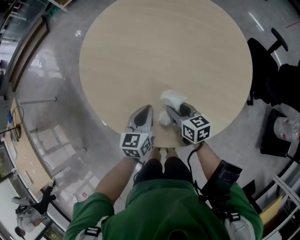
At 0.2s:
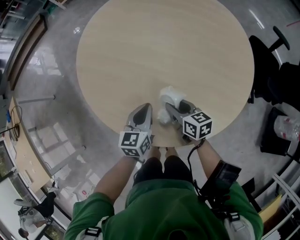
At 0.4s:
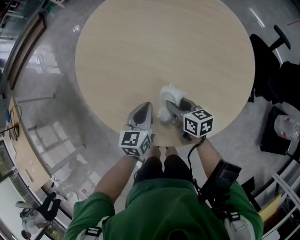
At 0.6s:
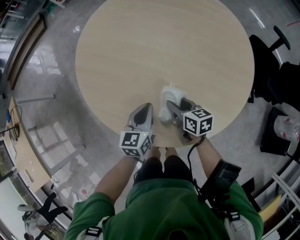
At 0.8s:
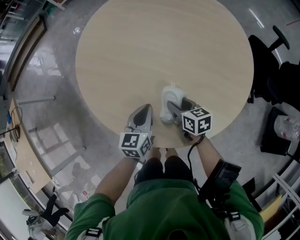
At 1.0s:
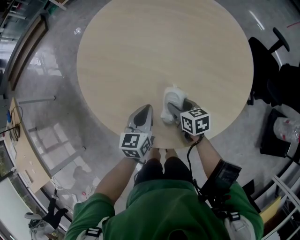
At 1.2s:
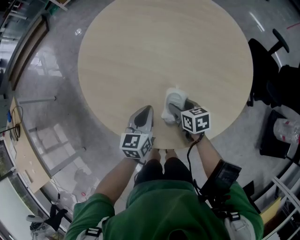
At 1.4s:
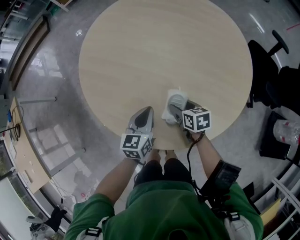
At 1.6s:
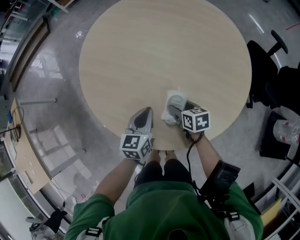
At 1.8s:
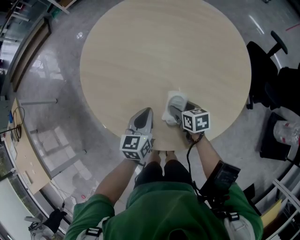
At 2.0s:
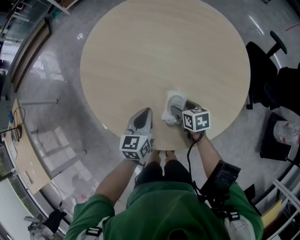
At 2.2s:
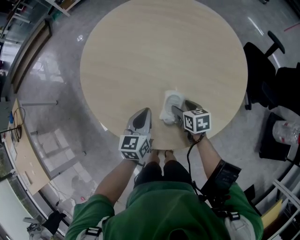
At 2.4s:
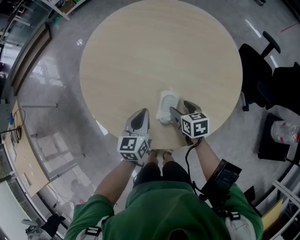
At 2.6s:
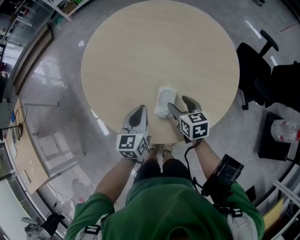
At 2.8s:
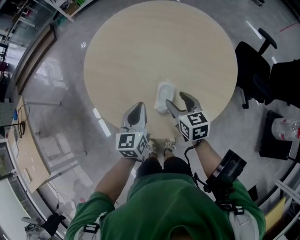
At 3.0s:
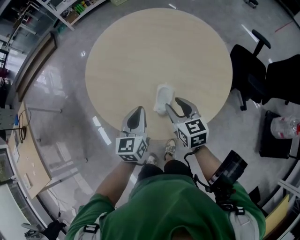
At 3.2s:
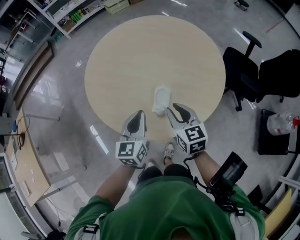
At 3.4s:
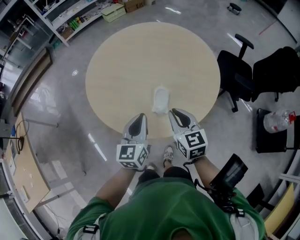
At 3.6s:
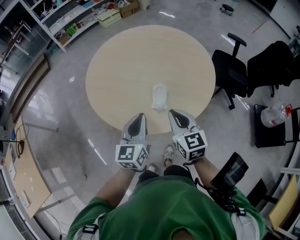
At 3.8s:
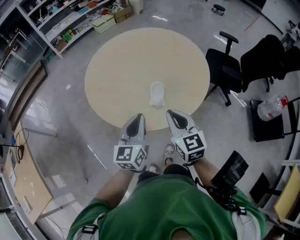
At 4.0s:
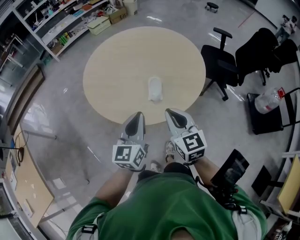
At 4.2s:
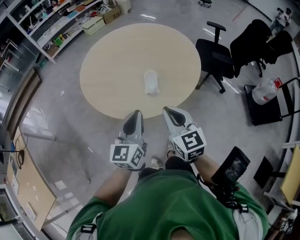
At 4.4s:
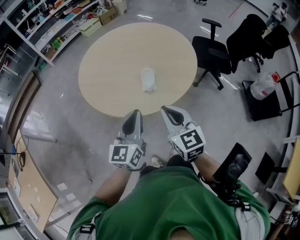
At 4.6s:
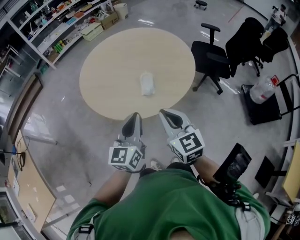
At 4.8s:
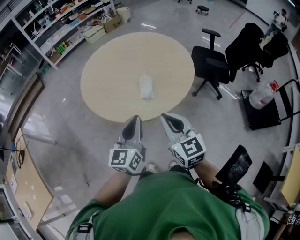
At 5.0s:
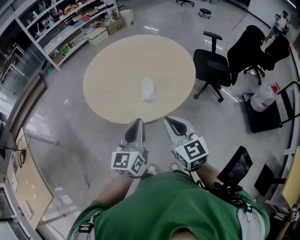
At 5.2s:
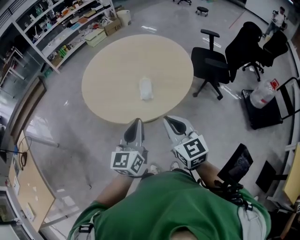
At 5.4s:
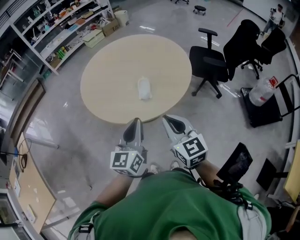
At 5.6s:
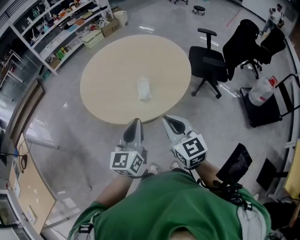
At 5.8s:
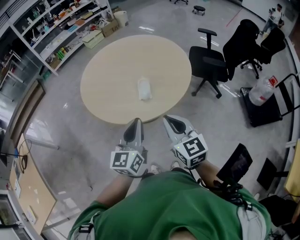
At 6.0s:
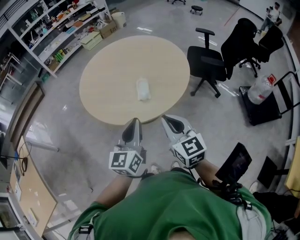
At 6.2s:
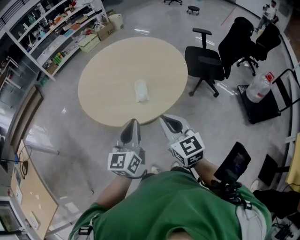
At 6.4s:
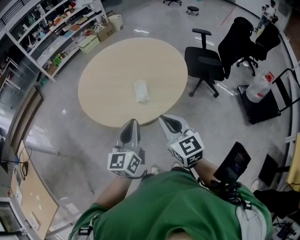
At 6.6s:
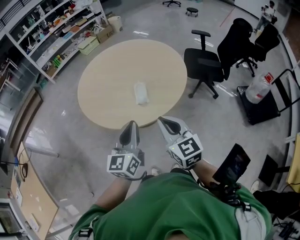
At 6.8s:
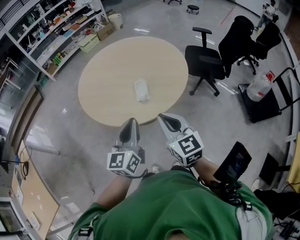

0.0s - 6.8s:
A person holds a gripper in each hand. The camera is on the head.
0.0s - 1.4s: The right gripper ends up approximately 5 cm from where it was, and opens its fingers.
1.4s - 2.8s: The right gripper is displaced upward by about 15 cm, and changes its angle by roughly 30 degrees. Meanwhile the left gripper heads upward, covering roughly 10 cm.
2.8s - 4.0s: The two grippers go approximately 25 cm backward and upward. The left gripper rotates approximately 20 degrees, while the right gripper swivels some 30 degrees, and closes its fingers.
4.0s - 5.4s: The grippers both shift backward by approximately 10 cm.
5.4s - 6.8s: Both grippers stay put.

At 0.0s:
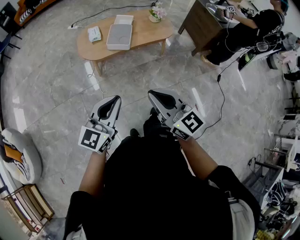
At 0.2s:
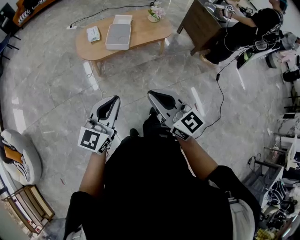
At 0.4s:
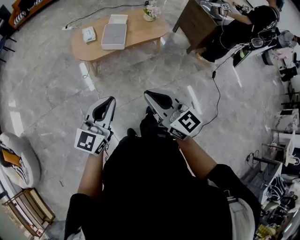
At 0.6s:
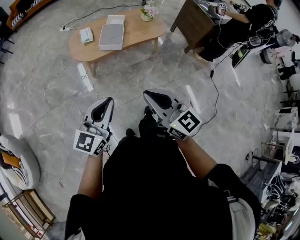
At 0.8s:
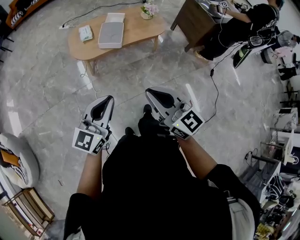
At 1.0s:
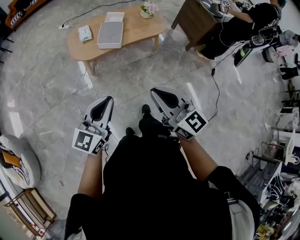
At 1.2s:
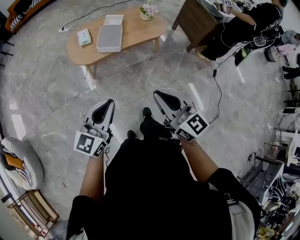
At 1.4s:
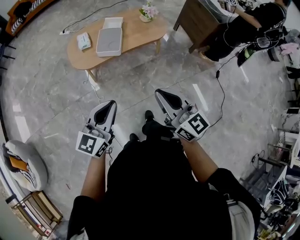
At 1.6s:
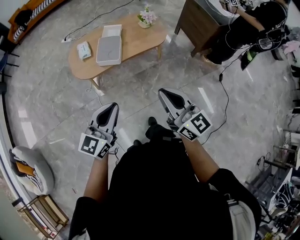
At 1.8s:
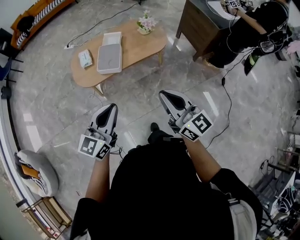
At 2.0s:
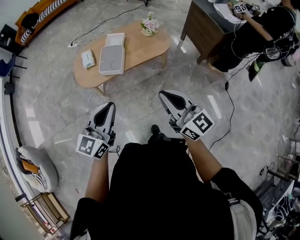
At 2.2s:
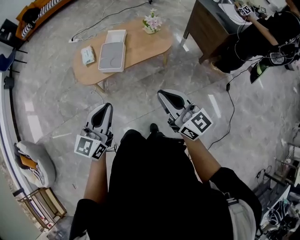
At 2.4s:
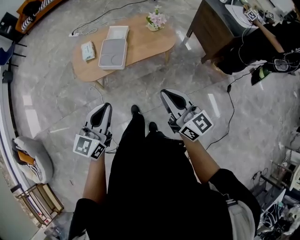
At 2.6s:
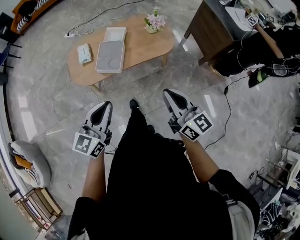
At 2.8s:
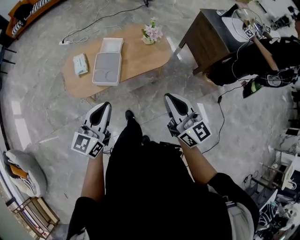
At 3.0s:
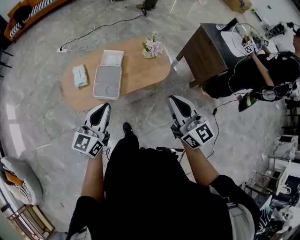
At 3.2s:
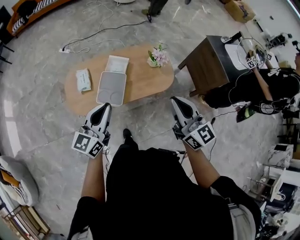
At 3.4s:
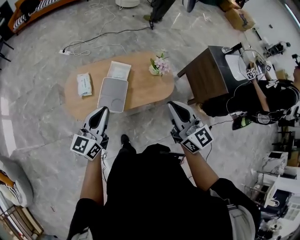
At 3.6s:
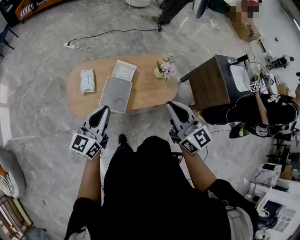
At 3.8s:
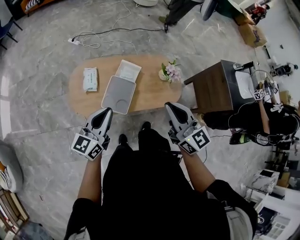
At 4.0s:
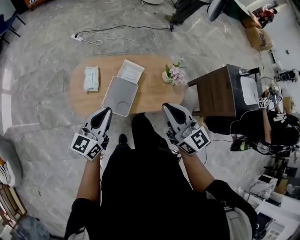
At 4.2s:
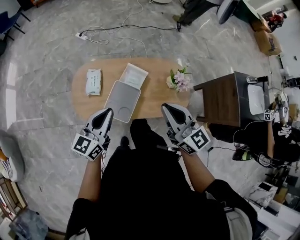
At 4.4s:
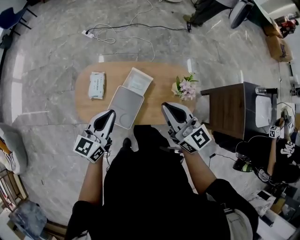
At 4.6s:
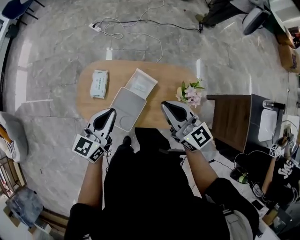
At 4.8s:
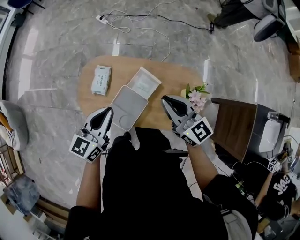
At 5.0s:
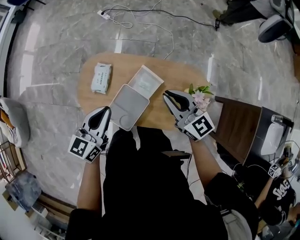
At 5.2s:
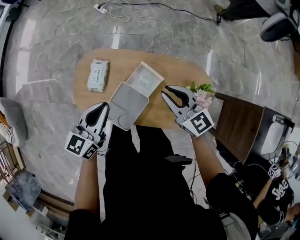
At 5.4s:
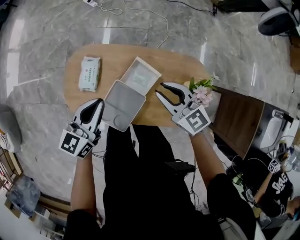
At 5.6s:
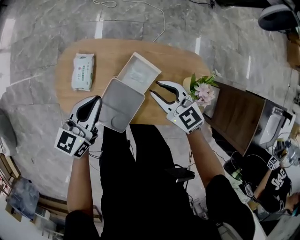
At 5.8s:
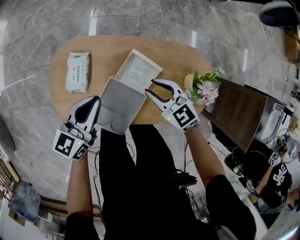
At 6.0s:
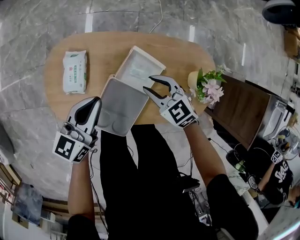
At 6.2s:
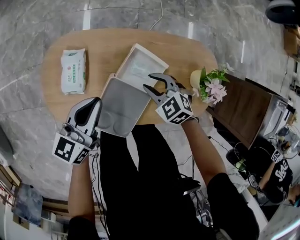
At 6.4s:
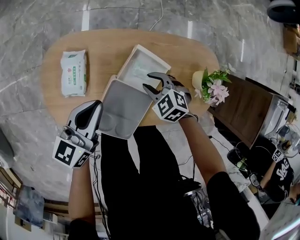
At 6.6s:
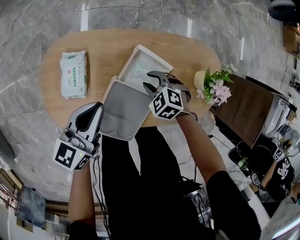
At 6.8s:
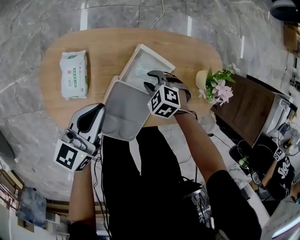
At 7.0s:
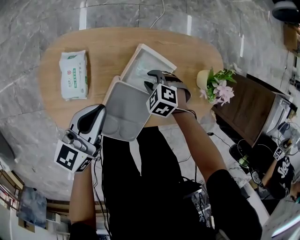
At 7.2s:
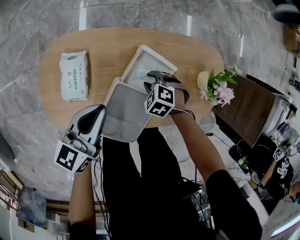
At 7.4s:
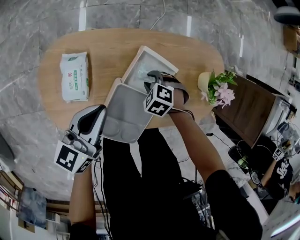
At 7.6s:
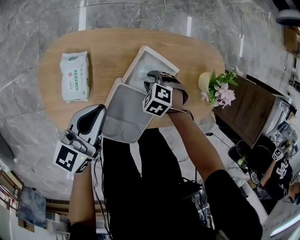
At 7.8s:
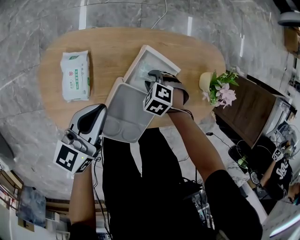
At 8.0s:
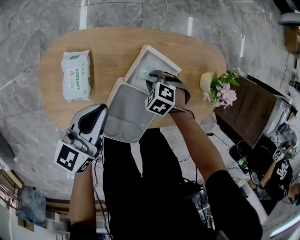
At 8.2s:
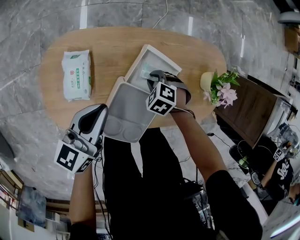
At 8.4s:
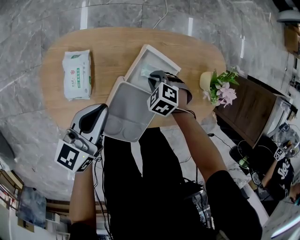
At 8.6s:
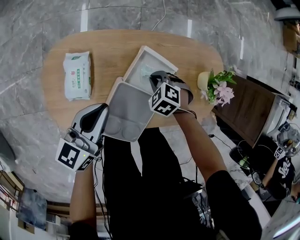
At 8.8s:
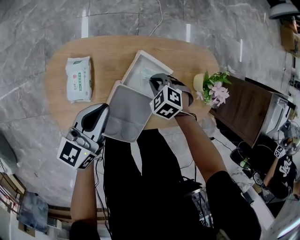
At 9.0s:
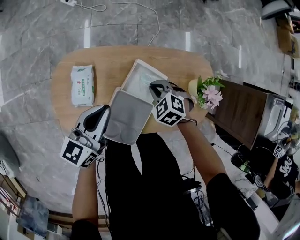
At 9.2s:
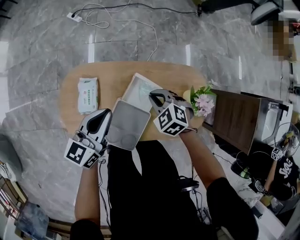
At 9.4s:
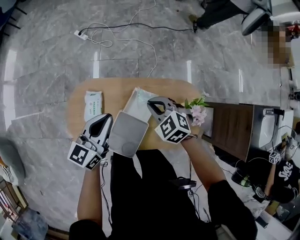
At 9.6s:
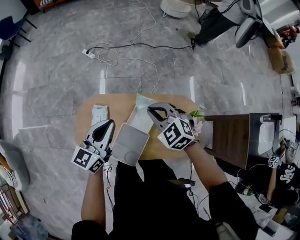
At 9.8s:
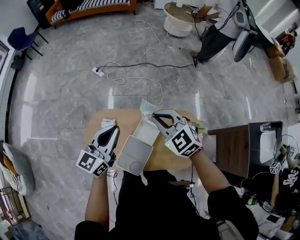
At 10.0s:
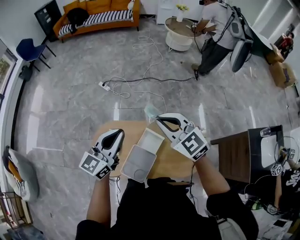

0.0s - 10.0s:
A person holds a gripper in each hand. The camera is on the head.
0.0s - 1.4s: The left gripper travels forward and to the right by some 10 cm. Meanwhile the right gripper is displaced to the right and forward by approximately 15 cm.
1.4s - 2.8s: Both grippers move forward, roughly 25 cm.
2.8s - 4.2s: The two grippers go roughly 30 cm forward. The right gripper swivels roughly 20 degrees.
4.2s - 5.8s: The two grippers go some 35 cm downward and forward. The right gripper tilts its fingers some 30 degrees downward, and opens.
5.8s - 7.2s: The left gripper travels downward by roughly 10 cm; the right gripper moves downward, roughly 20 cm, and points its fingers approximately 40 degrees further downward.
7.2s - 8.6s: The right gripper closes its fingers.
8.6s - 10.0s: The right gripper goes some 60 cm upward, and angles its fingers upward, by some 60 degrees. Meanwhile the left gripper goes approximately 40 cm upward, and turns by about 30 degrees.

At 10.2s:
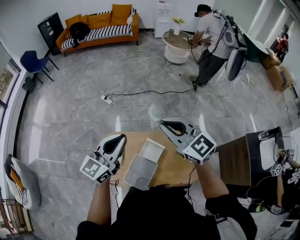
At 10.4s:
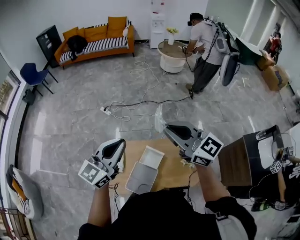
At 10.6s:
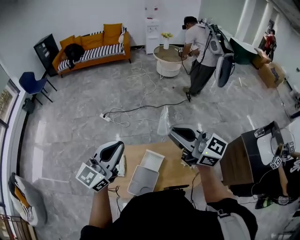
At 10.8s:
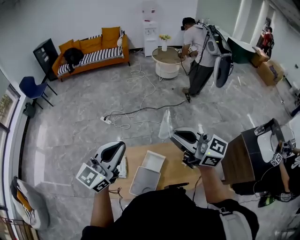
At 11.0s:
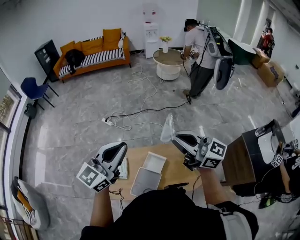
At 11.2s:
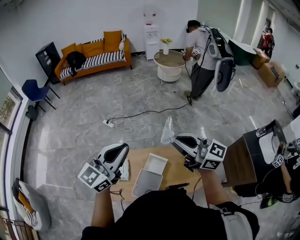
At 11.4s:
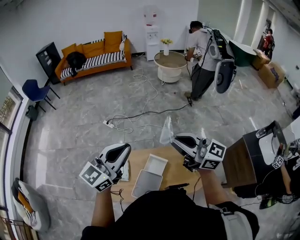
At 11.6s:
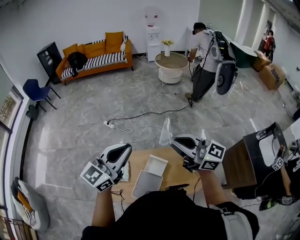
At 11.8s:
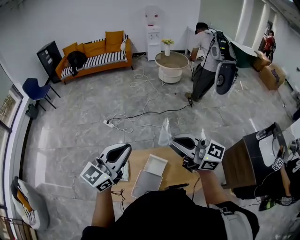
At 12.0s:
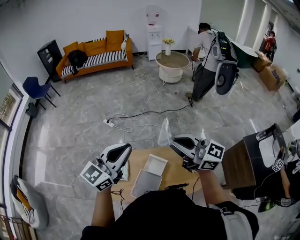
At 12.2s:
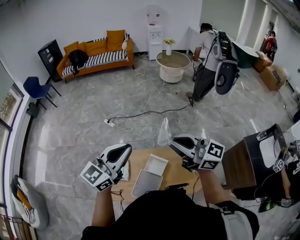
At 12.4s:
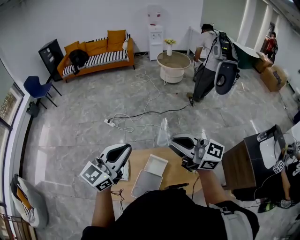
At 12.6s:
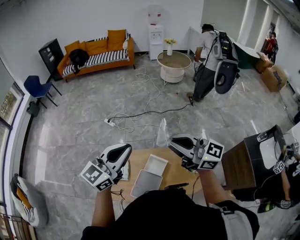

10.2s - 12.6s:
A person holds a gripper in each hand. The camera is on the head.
10.2s - 11.4s: The left gripper heads upward, covering some 10 cm, while the right gripper moves upward, backward and to the right, about 10 cm, and rotates some 30 degrees.
11.4s - 12.6s: There are only small adjustments of the grippers.

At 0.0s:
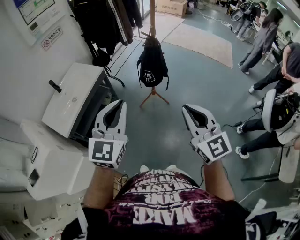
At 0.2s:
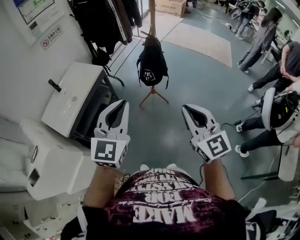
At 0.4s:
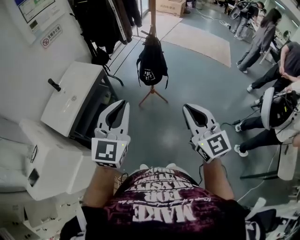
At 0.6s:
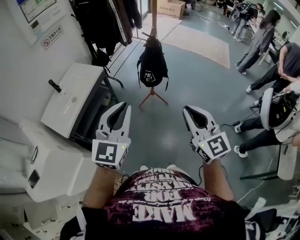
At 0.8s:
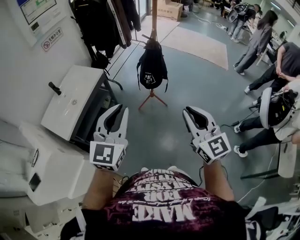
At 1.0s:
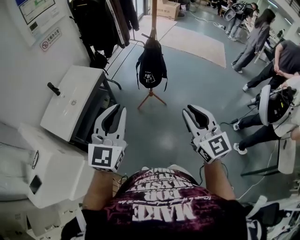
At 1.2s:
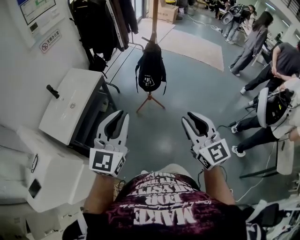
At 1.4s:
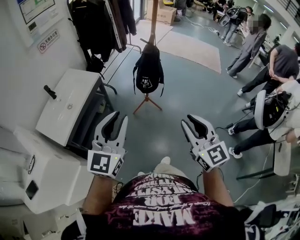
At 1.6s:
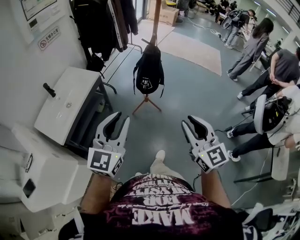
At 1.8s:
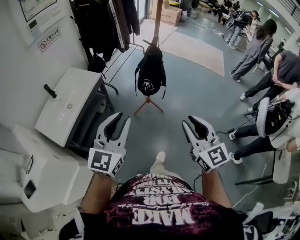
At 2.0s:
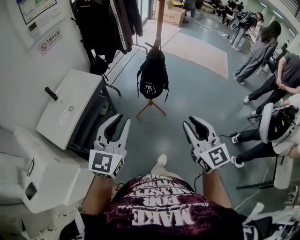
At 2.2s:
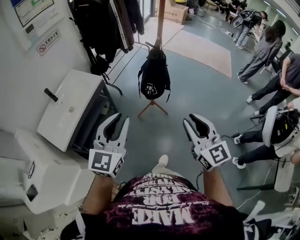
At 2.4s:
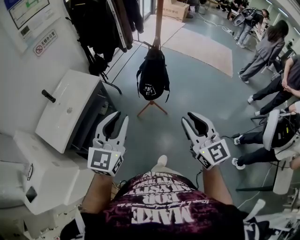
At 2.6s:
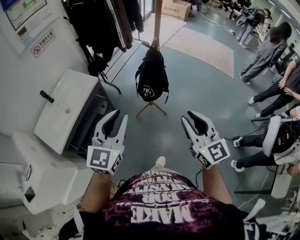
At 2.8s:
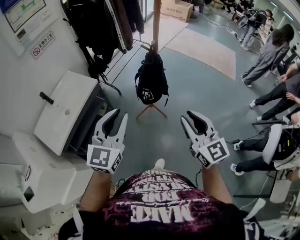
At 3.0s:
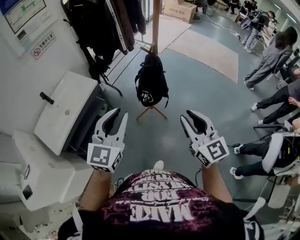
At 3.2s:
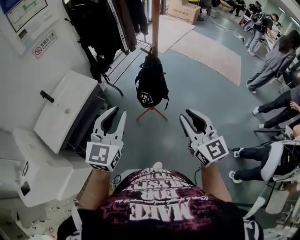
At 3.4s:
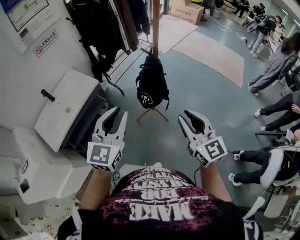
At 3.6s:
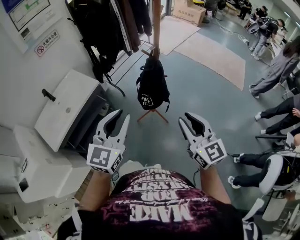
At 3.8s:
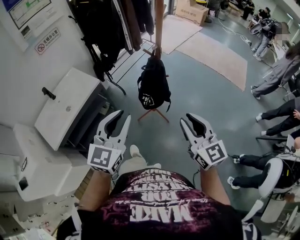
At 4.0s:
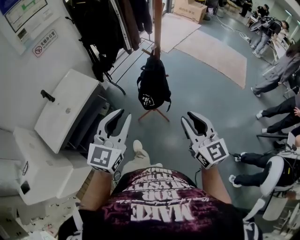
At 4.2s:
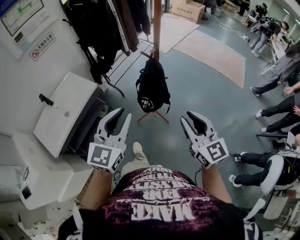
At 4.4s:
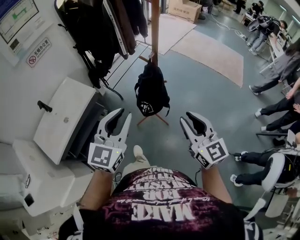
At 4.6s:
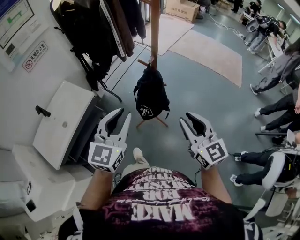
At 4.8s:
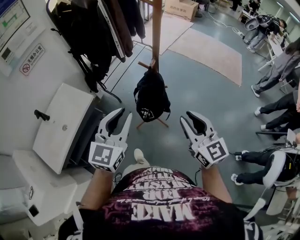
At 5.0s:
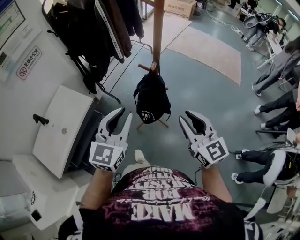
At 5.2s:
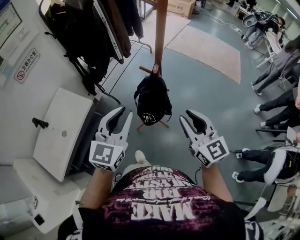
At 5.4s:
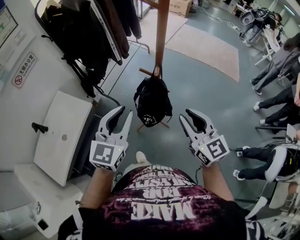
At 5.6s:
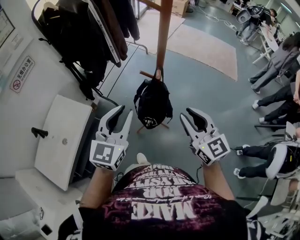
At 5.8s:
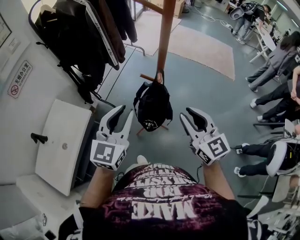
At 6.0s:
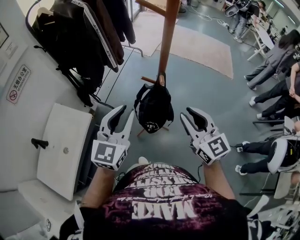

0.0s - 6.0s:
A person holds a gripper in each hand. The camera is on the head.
0.0s - 1.6s: The right gripper opens. The left gripper is displaced to the left by approximately 5 cm.
1.6s - 3.0s: Both grippers travel together forward and to the right, some 20 cm.
3.0s - 4.4s: The grippers both shift forward by about 10 cm.
4.4s - 6.0s: The left gripper shifts roughly 20 cm forward, while the right gripper heads forward and to the left, covering approximately 15 cm.
